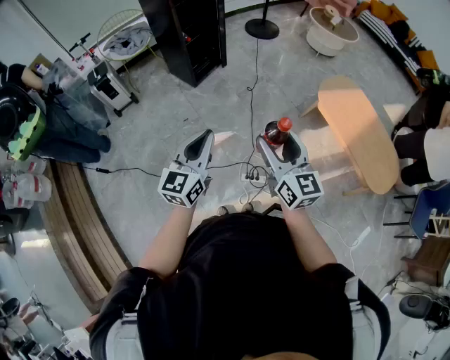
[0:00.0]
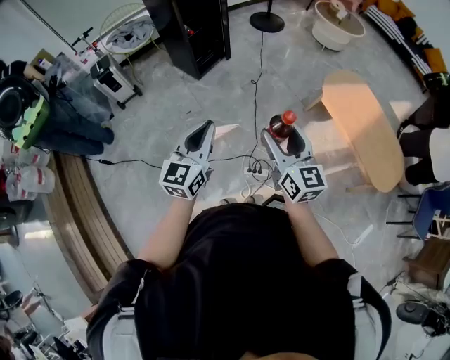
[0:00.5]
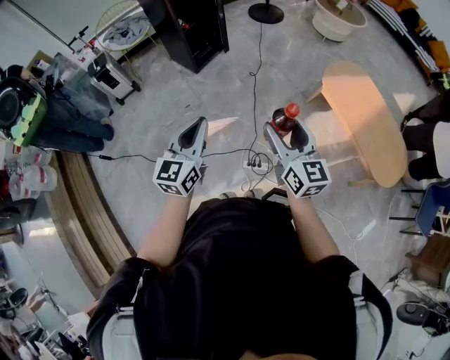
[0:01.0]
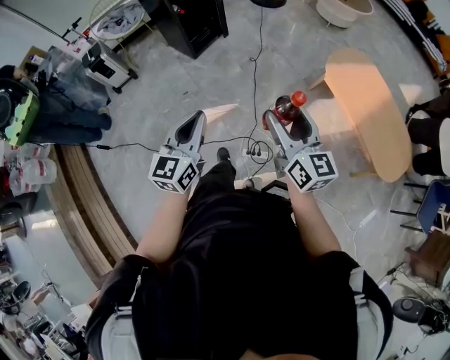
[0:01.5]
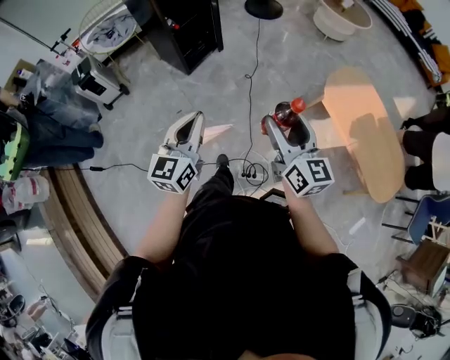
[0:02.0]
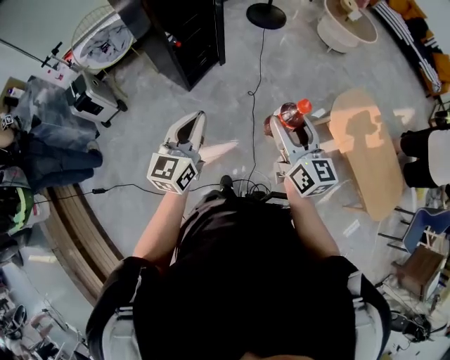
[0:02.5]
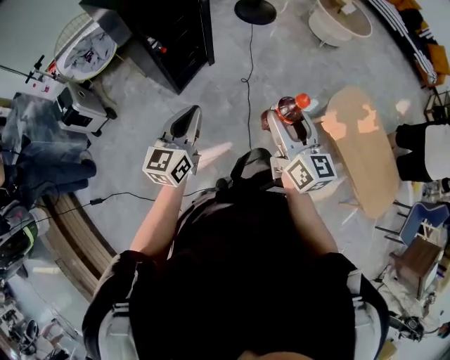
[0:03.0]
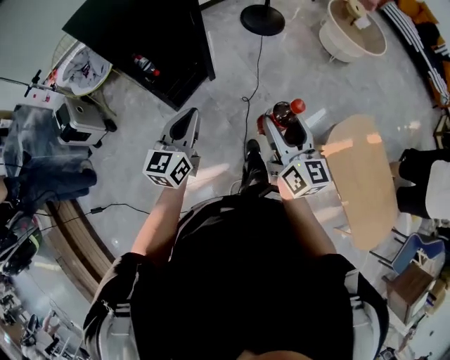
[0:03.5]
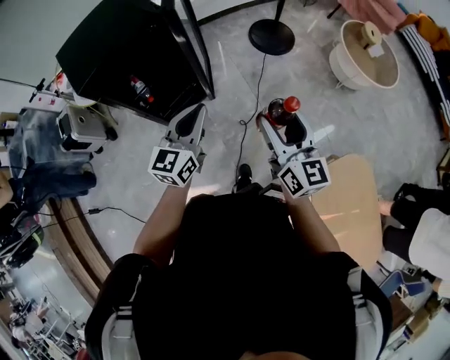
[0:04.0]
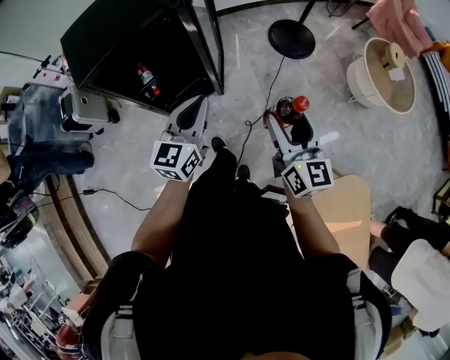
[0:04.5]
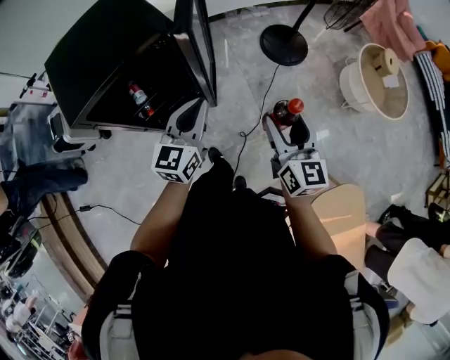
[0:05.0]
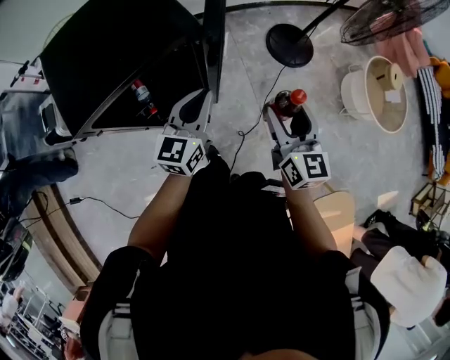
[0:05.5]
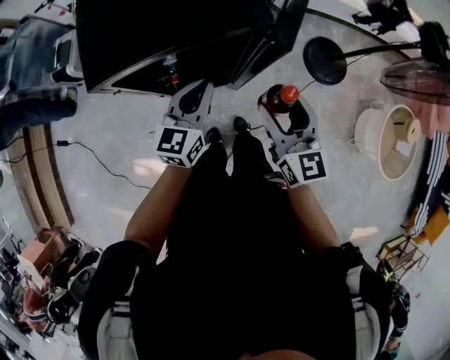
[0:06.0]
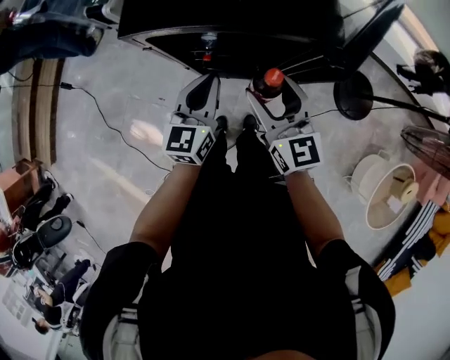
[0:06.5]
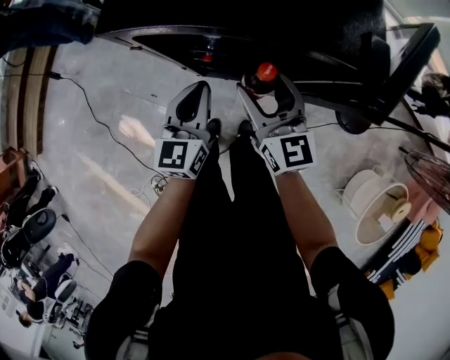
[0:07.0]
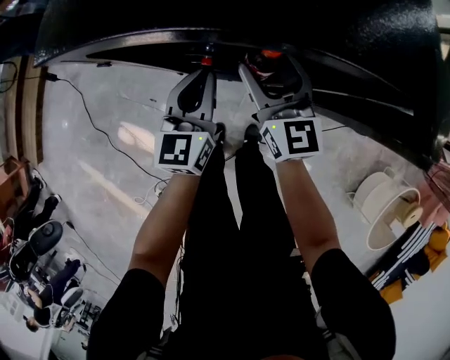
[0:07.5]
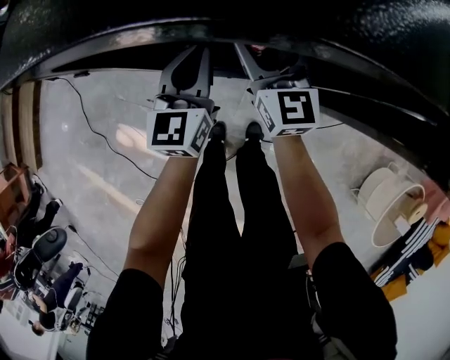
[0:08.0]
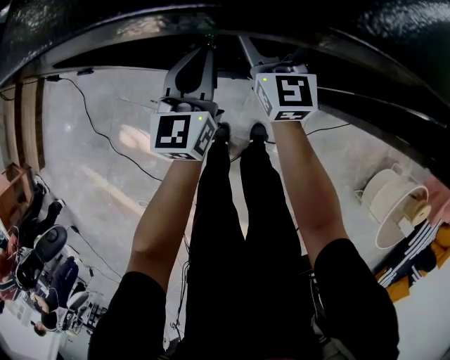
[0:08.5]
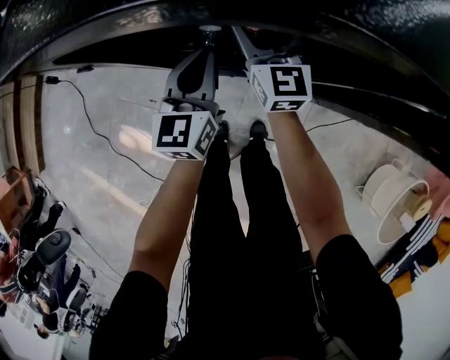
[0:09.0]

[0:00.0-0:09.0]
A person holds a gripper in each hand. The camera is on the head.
0:00.0 to 0:02.0: Both grippers travel together forward, approximately 20 cm.
0:02.0 to 0:04.5: The pair of grippers is taken forward, roughly 70 cm.
0:04.5 to 0:07.0: The left gripper shifts by about 35 cm, and turns by some 50 degrees. The right gripper changes place by about 50 cm, and rotates some 50 degrees.
0:07.0 to 0:09.0: The left gripper goes about 15 cm downward and forward. The right gripper goes roughly 25 cm forward and downward.

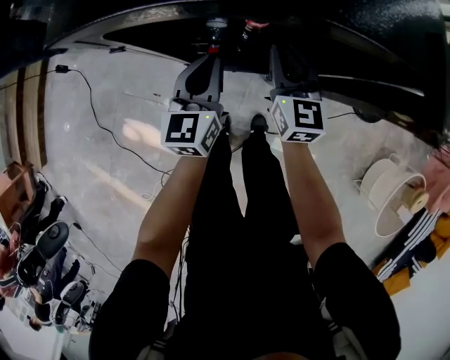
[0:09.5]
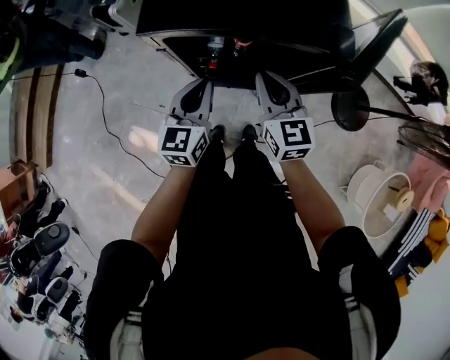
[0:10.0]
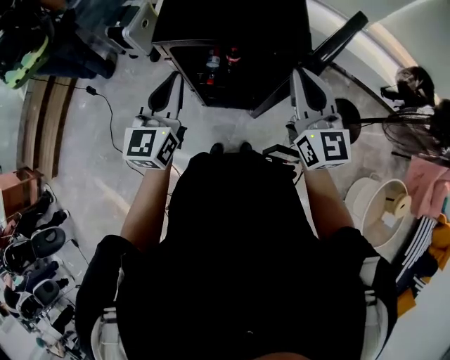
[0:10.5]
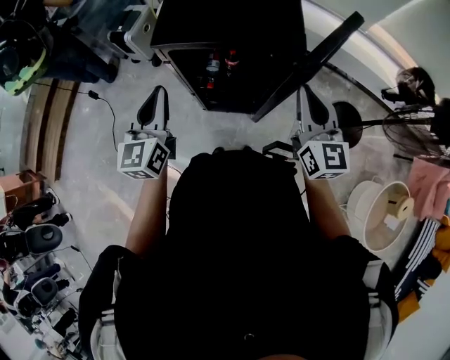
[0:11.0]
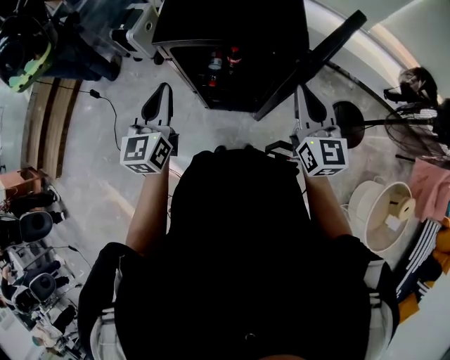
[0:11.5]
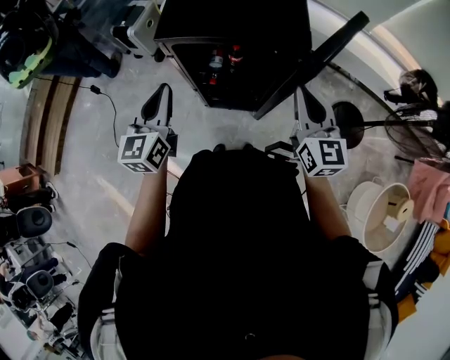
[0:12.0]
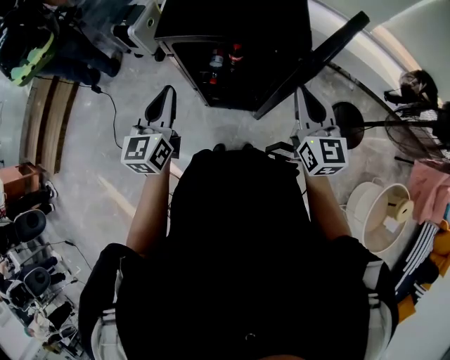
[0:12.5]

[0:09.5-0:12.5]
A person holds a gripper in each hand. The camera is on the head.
0:09.5 to 0:11.0: Both grippers move upward and backward, about 35 cm.
0:11.0 to 0:12.5: The grippers make only small movements.

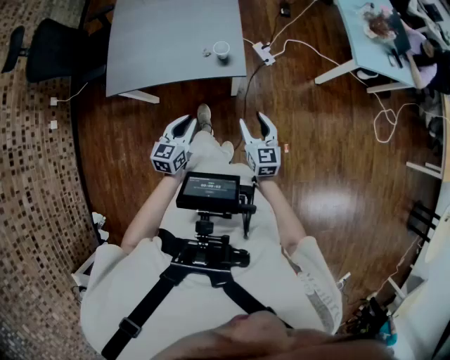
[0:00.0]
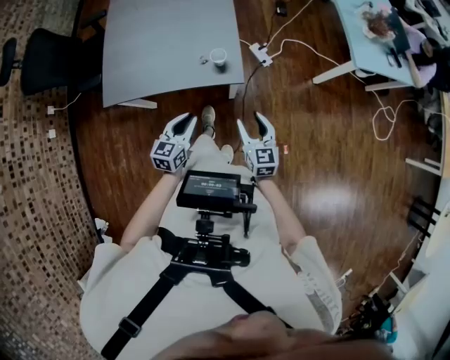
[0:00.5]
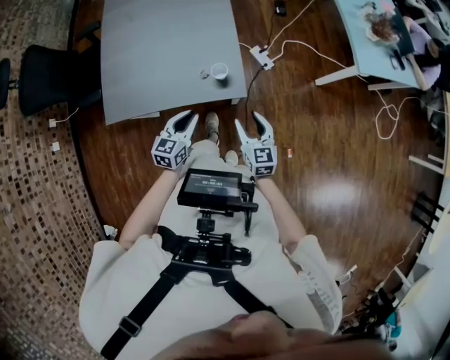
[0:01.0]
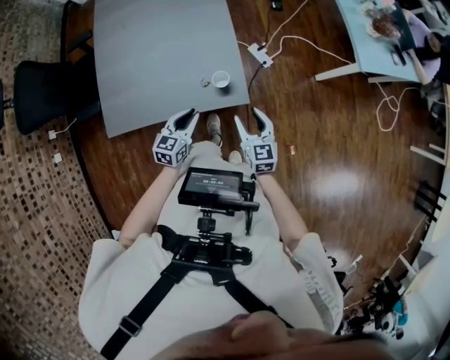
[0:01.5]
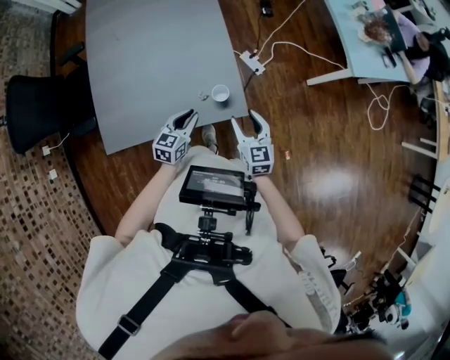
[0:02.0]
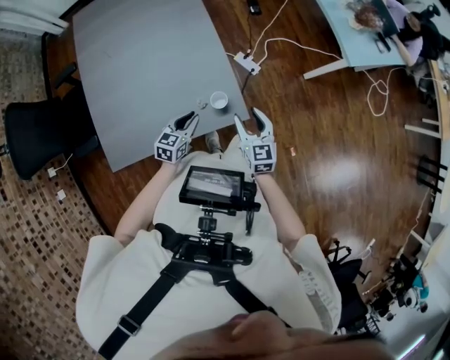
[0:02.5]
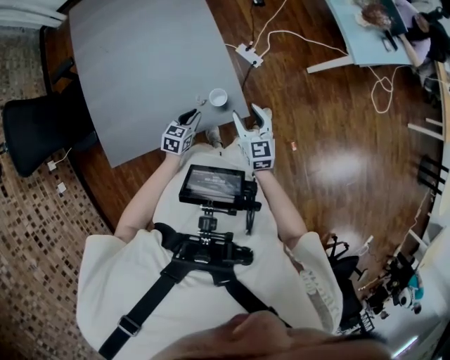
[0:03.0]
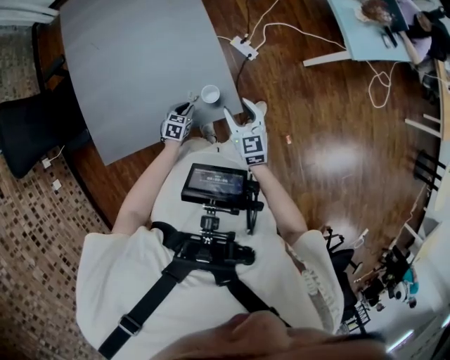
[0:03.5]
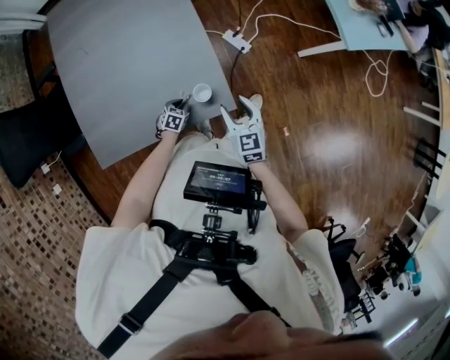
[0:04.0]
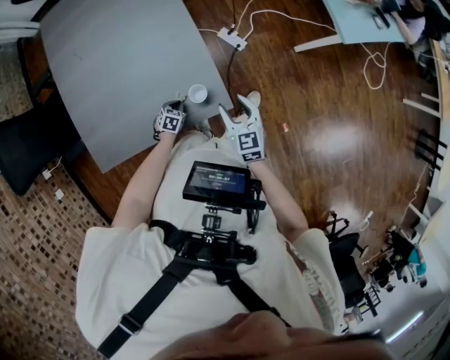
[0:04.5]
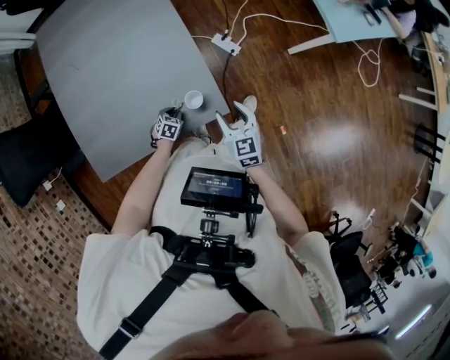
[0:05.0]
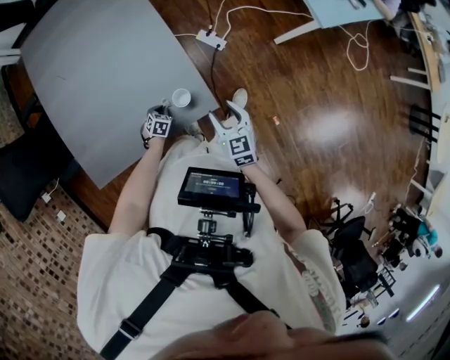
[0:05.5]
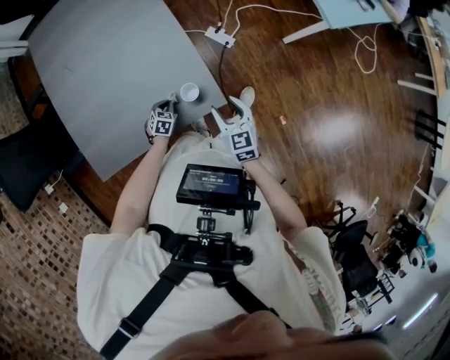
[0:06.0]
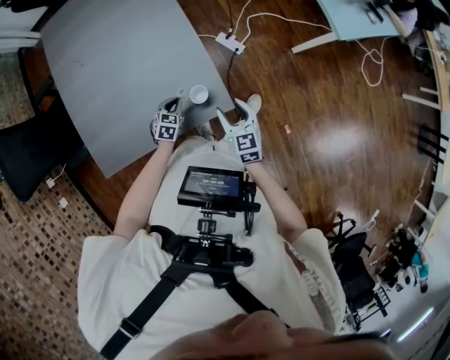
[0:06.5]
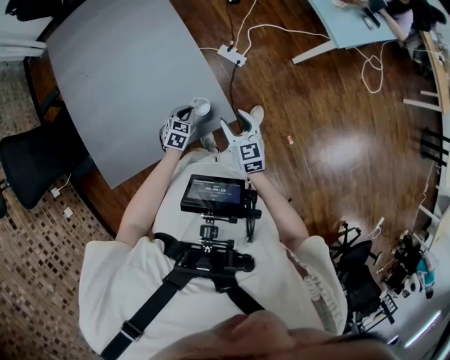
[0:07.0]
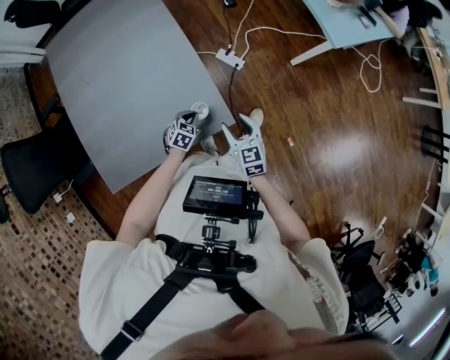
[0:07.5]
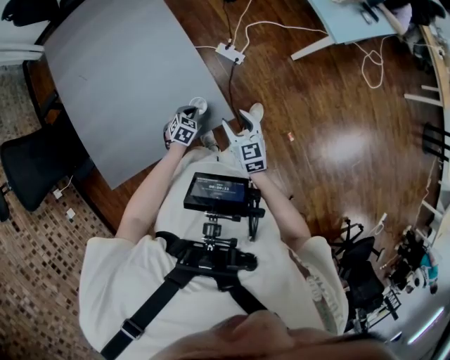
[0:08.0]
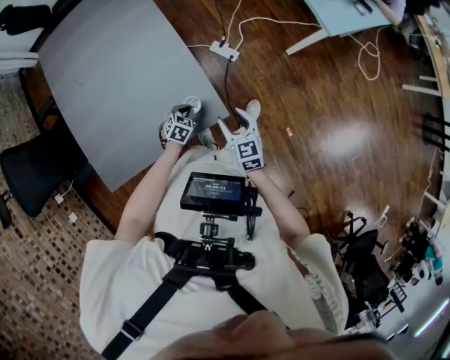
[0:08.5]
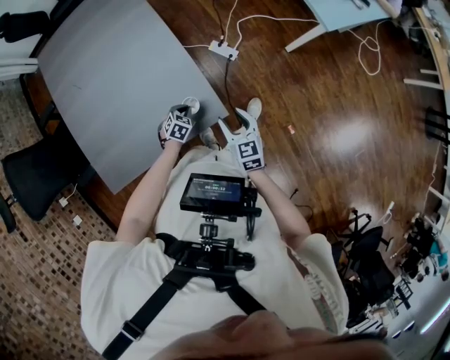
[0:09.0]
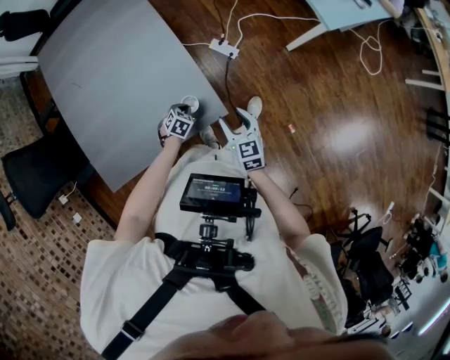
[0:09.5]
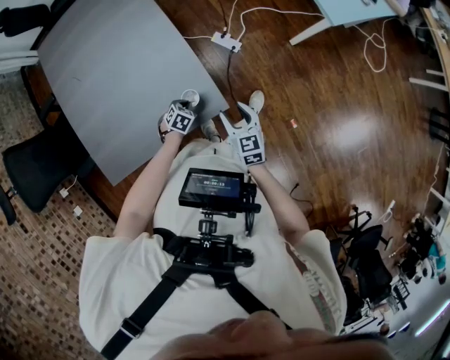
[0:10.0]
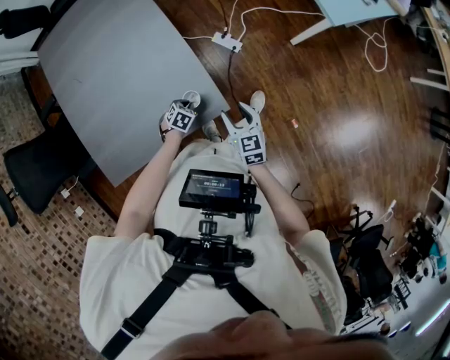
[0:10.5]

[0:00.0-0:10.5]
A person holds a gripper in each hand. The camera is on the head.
0:00.0 to 0:02.0: The left gripper heads forward, covering about 25 cm. Meanwhile the right gripper is displaced forward and to the left by some 25 cm.
0:02.0 to 0:04.0: The right gripper is displaced forward by some 5 cm. The left gripper heads downward, covering roughly 25 cm, and angles its fingers downward, by about 30 degrees.
0:04.0 to 0:06.5: The left gripper travels upward by approximately 10 cm.
0:06.5 to 0:08.5: The left gripper shifts by about 5 cm.
0:08.5 to 0:10.5: The grippers stay close to where they were, moving slightly.

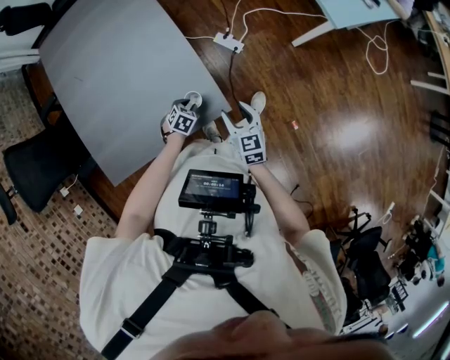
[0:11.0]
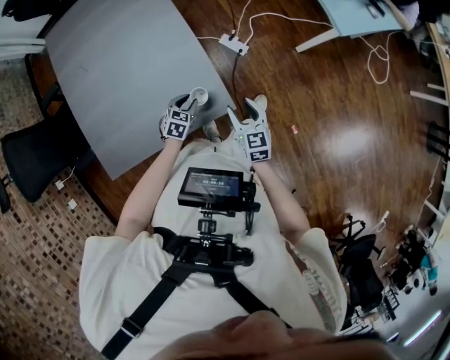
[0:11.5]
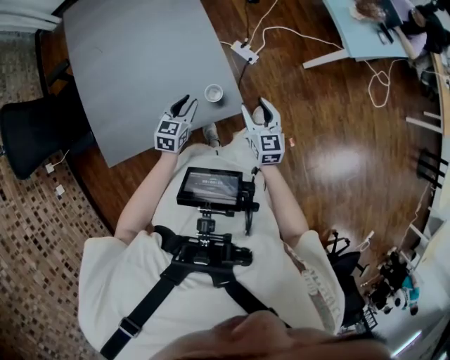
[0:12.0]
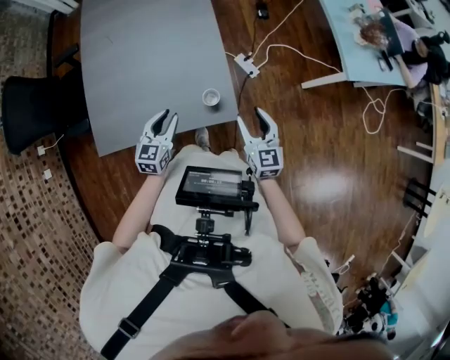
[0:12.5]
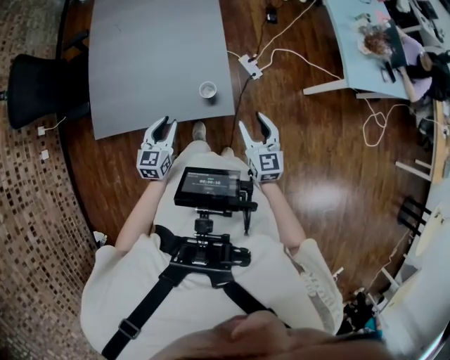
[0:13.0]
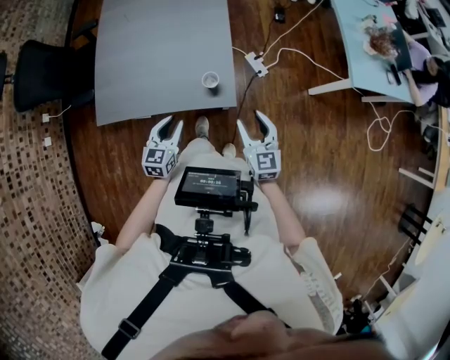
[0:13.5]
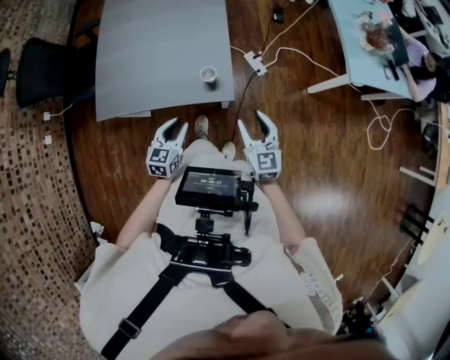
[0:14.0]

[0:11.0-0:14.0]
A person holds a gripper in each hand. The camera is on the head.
0:11.0 to 0:12.5: The right gripper goes some 10 cm upward. The left gripper heads upward, covering roughly 25 cm, and tilts its fingers about 40 degrees upward.
0:12.5 to 0:14.0: The grippers both shift backward by roughly 15 cm.

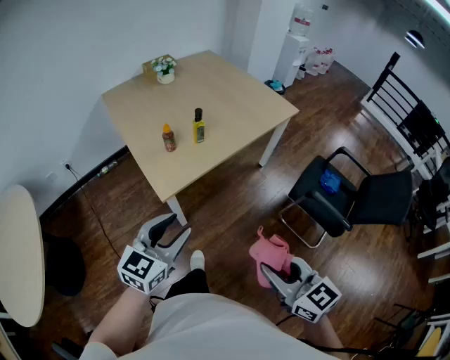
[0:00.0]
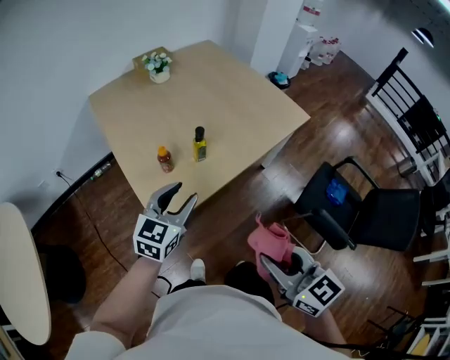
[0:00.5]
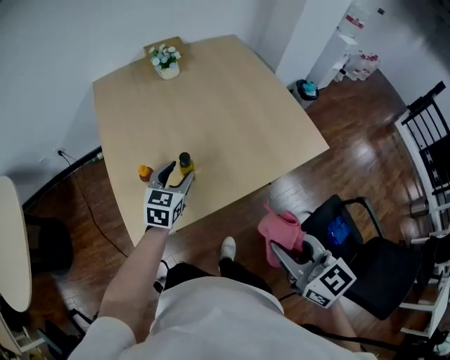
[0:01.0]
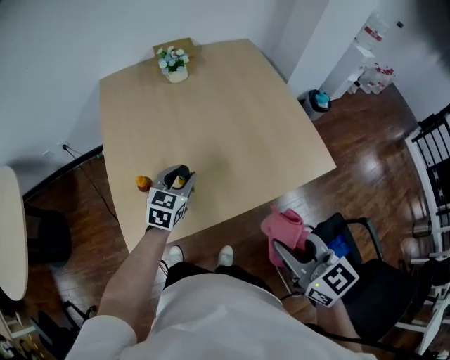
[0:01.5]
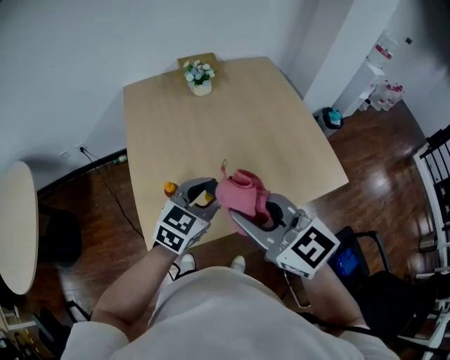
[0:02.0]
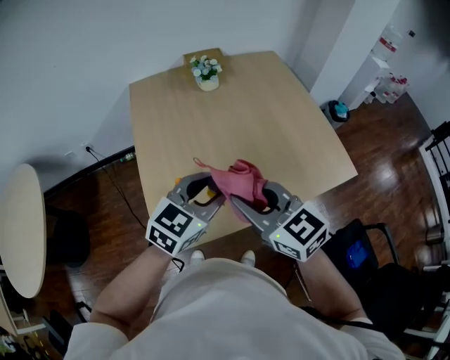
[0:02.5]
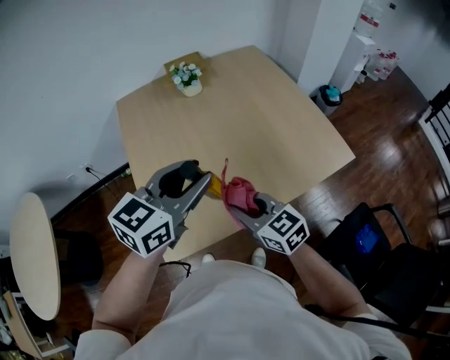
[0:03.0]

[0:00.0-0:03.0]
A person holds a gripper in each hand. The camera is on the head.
0:00.0 to 0:01.5: The pair of grippers is taken forward, about 50 cm. The left gripper turns by approximately 30 degrees.
0:01.5 to 0:03.0: The left gripper goes about 20 cm upward, and rotates about 20 degrees. The right gripper moves to the left, forward and downward, some 20 cm.
